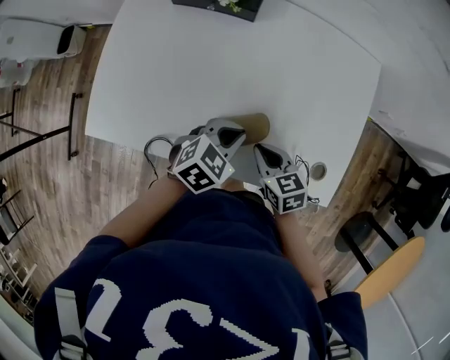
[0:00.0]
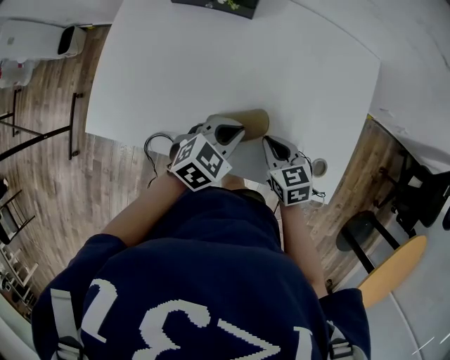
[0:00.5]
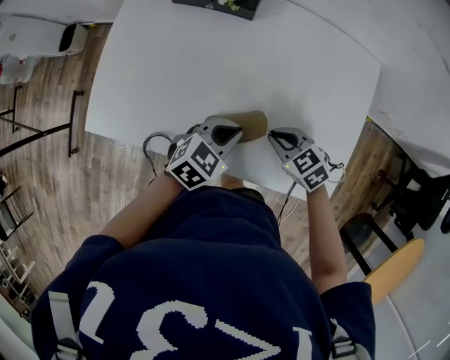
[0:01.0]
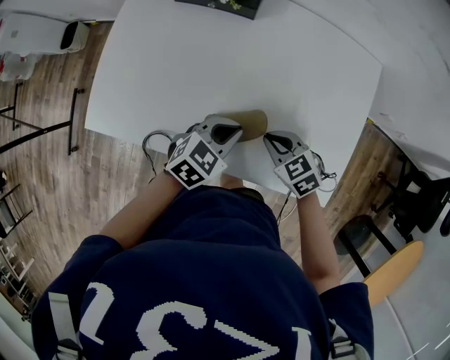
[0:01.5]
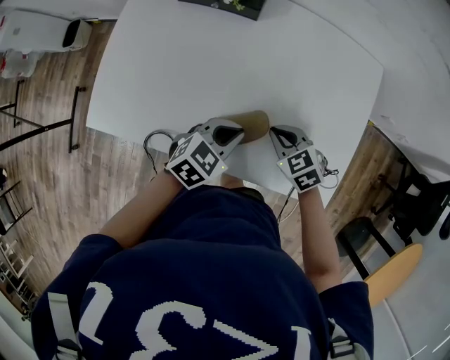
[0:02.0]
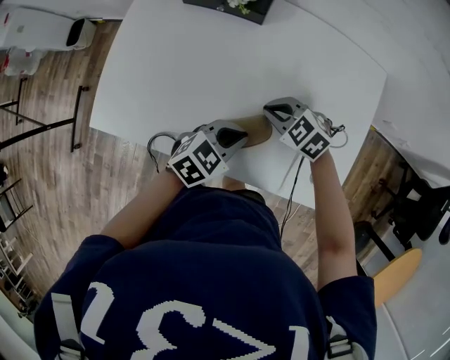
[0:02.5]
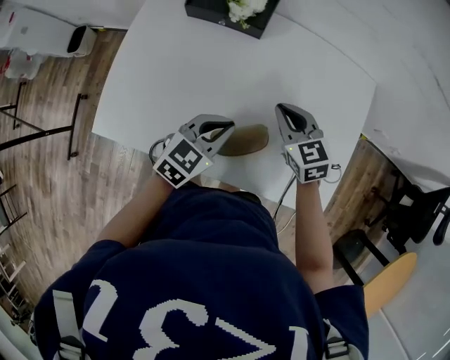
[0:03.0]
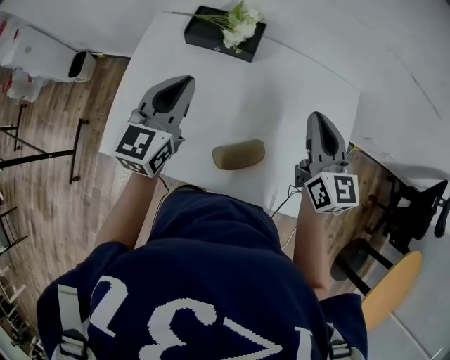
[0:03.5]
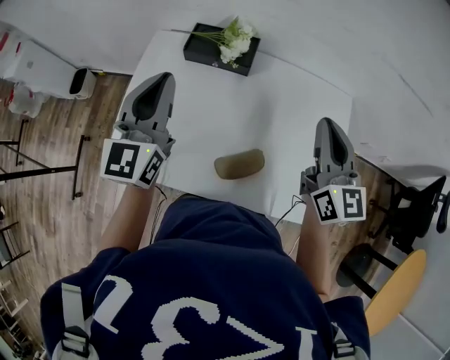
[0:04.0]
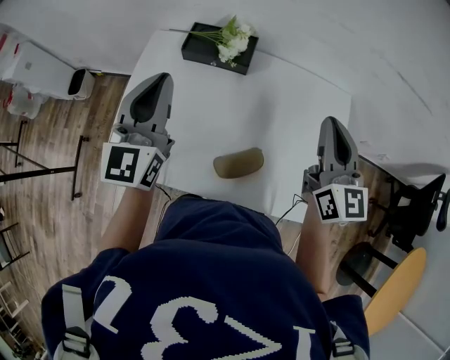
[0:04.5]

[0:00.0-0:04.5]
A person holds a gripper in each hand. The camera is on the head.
0:00.0 to 0:02.0: The right gripper shifts by some 5 cm, and swivels approximately 30 degrees.
0:02.0 to 0:04.5: The two grippers go some 30 cm upward. The right gripper tilts its fingers approximately 50 degrees upward, while the left gripper points its fingers some 50 degrees further upward.

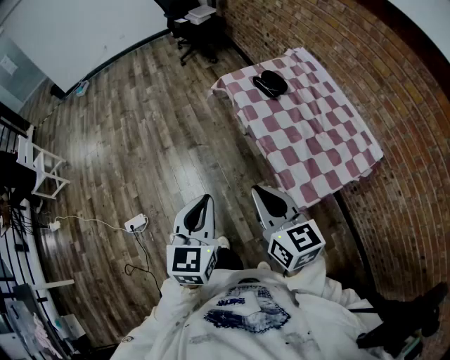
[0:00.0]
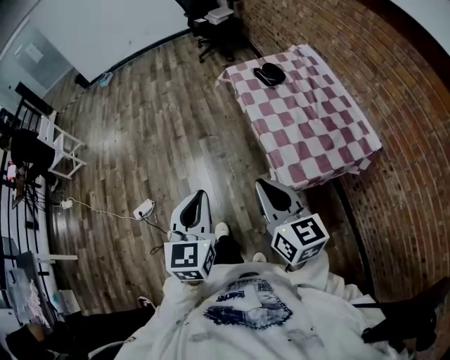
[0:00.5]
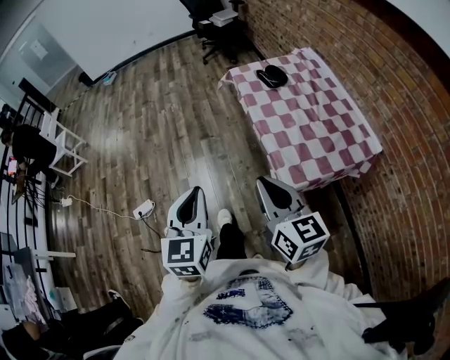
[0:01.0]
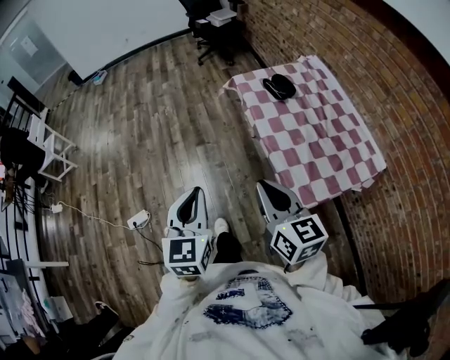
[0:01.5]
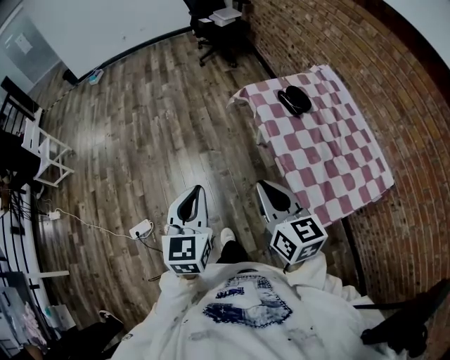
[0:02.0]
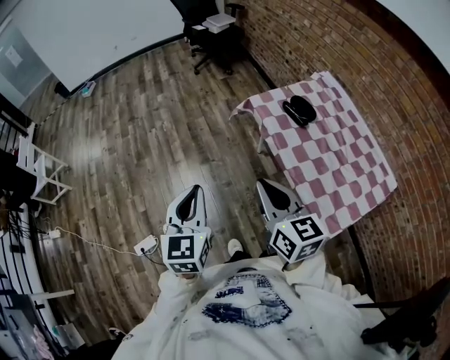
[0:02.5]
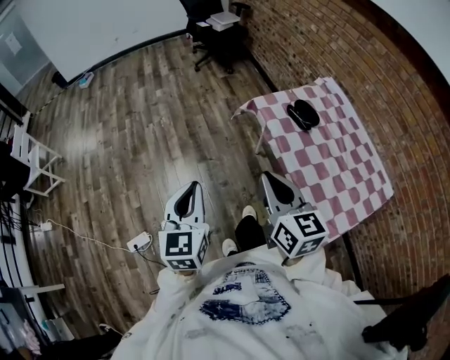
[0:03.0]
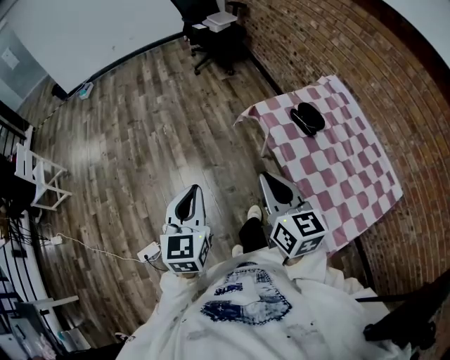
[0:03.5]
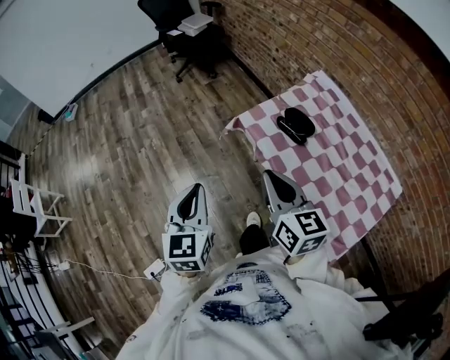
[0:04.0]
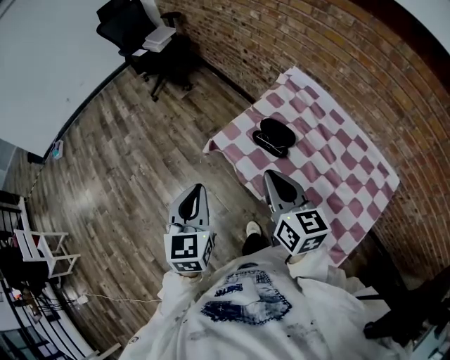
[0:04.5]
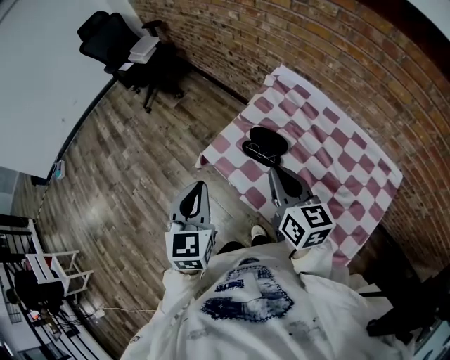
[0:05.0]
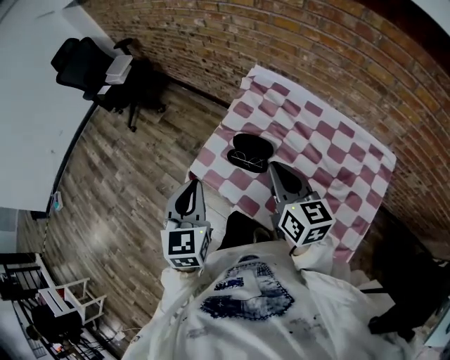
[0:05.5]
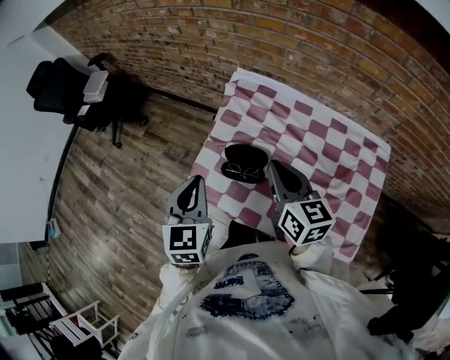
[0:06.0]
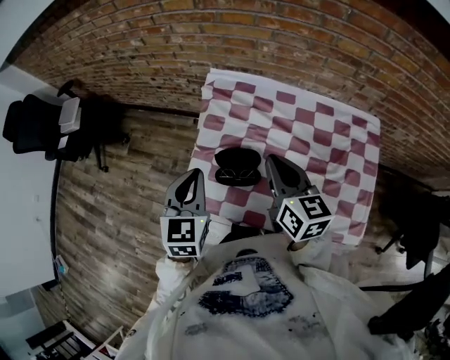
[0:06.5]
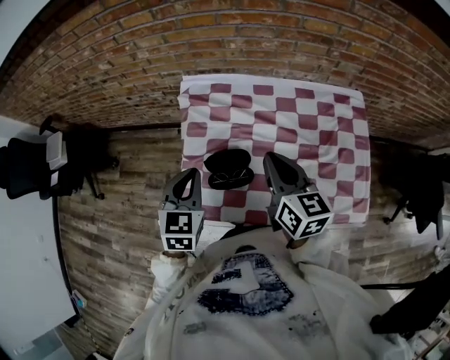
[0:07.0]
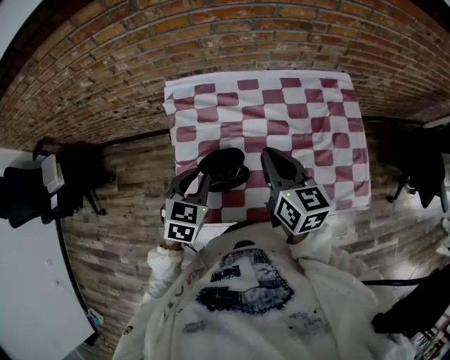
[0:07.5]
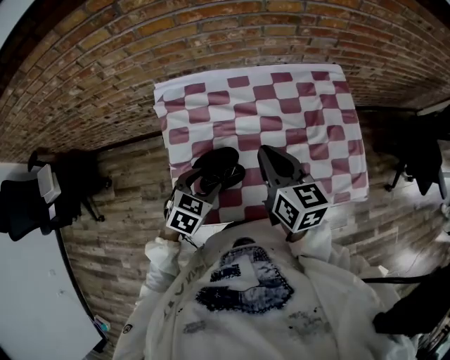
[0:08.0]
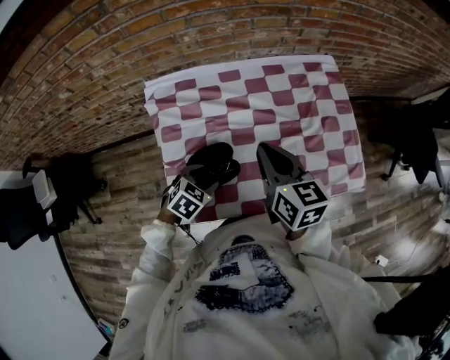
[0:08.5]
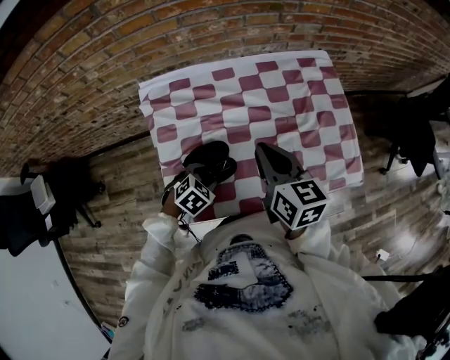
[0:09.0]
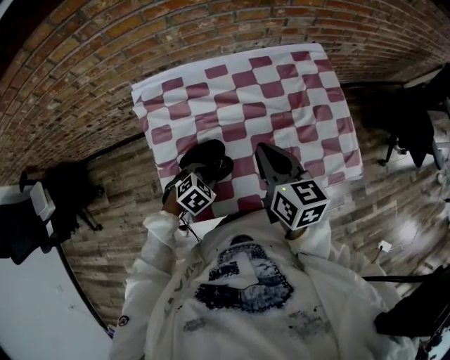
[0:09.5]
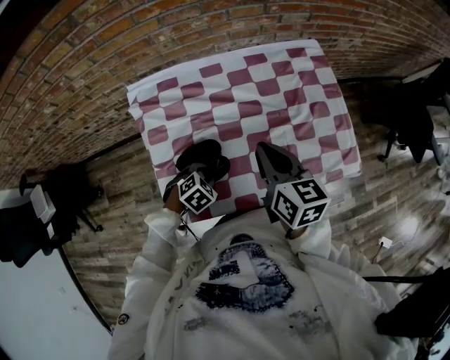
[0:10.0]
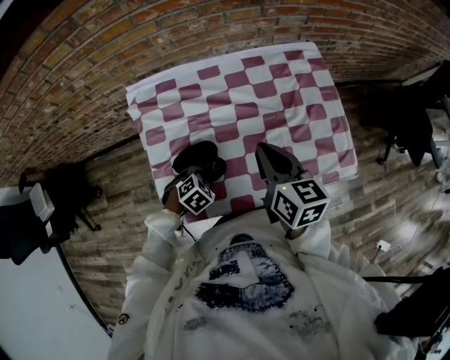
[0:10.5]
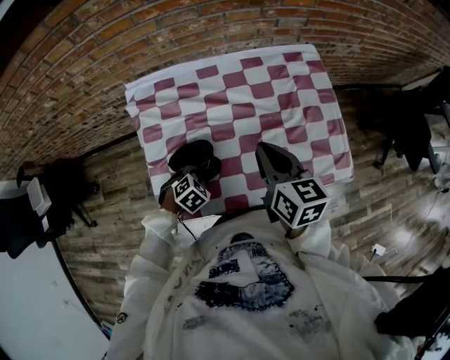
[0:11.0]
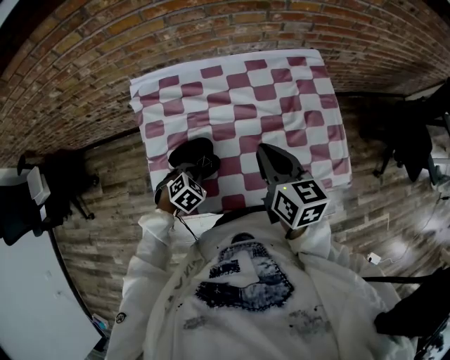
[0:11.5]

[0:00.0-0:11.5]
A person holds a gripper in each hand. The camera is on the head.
0:00.0 to 0:02.0: The left gripper moves forward and to the left, some 10 cm. Meanwhile the right gripper moves forward, approximately 10 cm.
0:02.0 to 0:04.0: Both grippers travel together forward, approximately 25 cm.
0:04.0 to 0:06.0: The right gripper ends up approximately 35 cm from where it was, and swivels some 30 degrees, while the left gripper moves some 40 cm, and turns by some 40 degrees.
0:06.0 to 0:07.5: The left gripper goes some 10 cm downward, and changes its angle by some 50 degrees; the right gripper shifts by roughly 5 cm, and turns by roughly 30 degrees.
0:07.5 to 0:09.5: The left gripper shifts approximately 15 cm downward, turns by some 40 degrees, and opens up.
0:09.5 to 0:11.5: The left gripper closes.

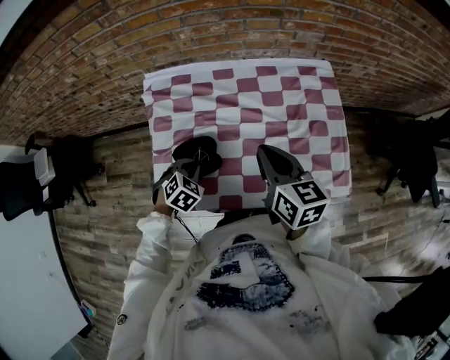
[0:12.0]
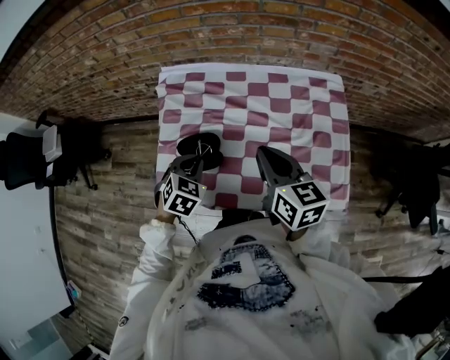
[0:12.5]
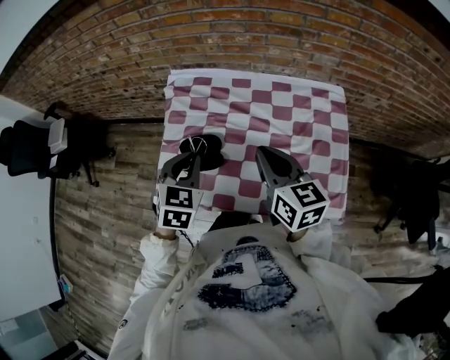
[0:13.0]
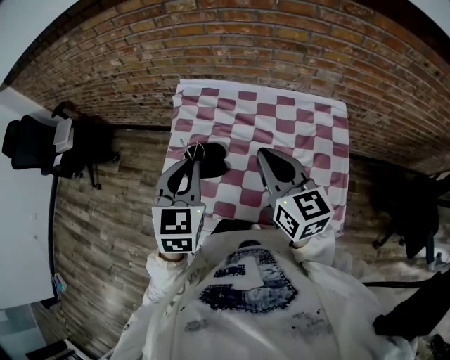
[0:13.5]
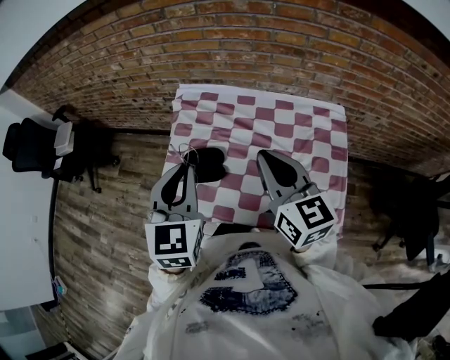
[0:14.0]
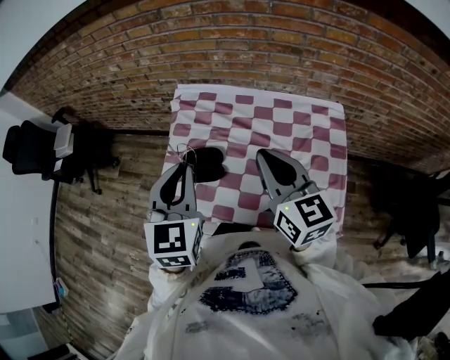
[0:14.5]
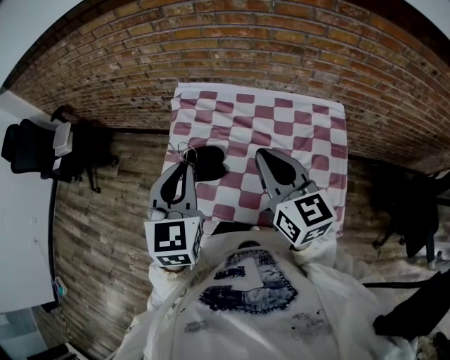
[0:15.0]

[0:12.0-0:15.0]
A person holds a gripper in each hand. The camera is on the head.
0:12.0 to 0:13.5: The right gripper is displaced upward by about 10 cm, and swivels roughly 20 degrees; the left gripper travels upward by approximately 25 cm, and tips its fingers upward by about 40 degrees.
0:13.5 to 0:15.0: There are only small adjustments of the grippers.

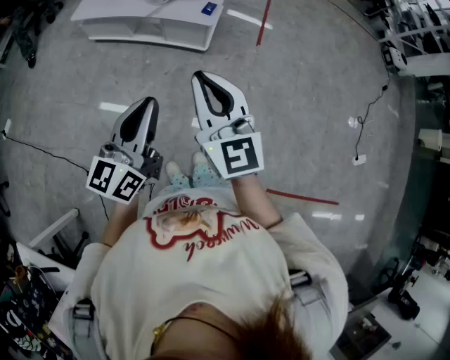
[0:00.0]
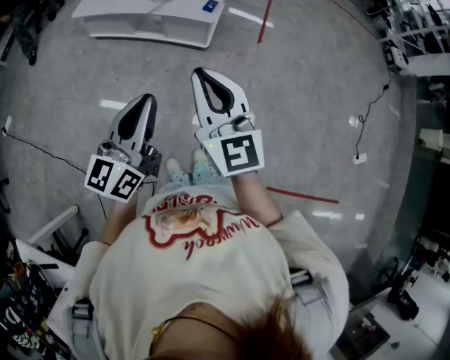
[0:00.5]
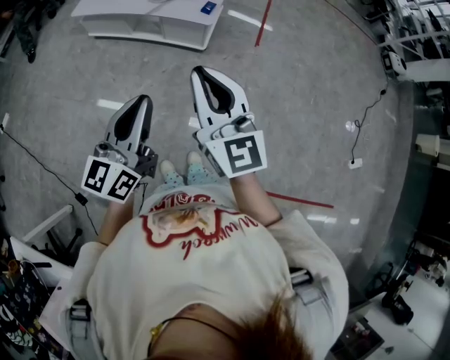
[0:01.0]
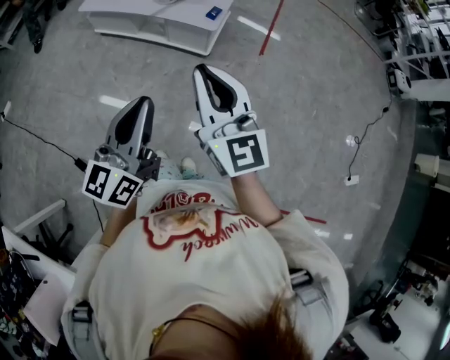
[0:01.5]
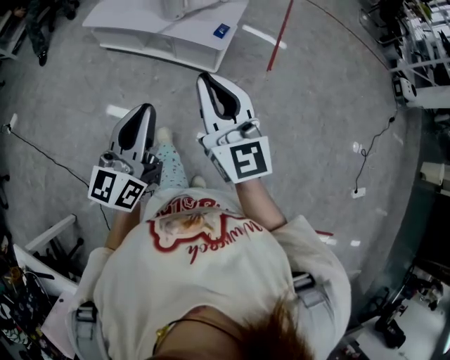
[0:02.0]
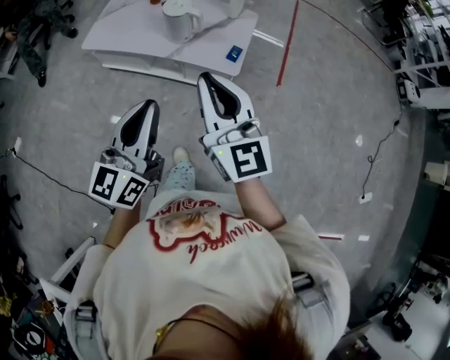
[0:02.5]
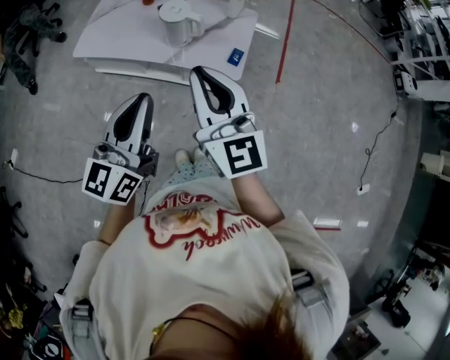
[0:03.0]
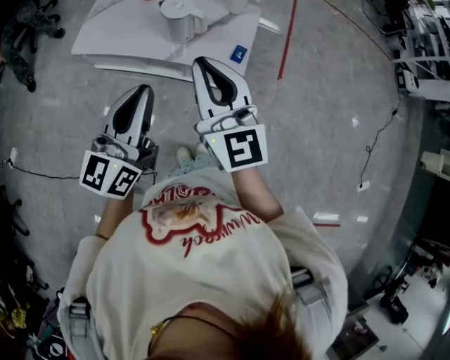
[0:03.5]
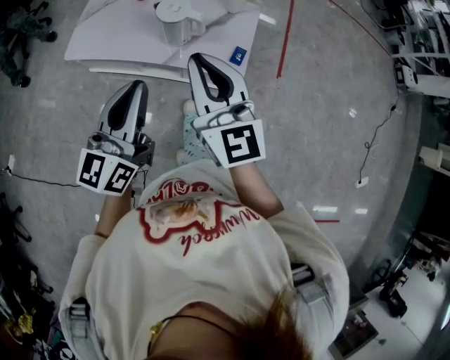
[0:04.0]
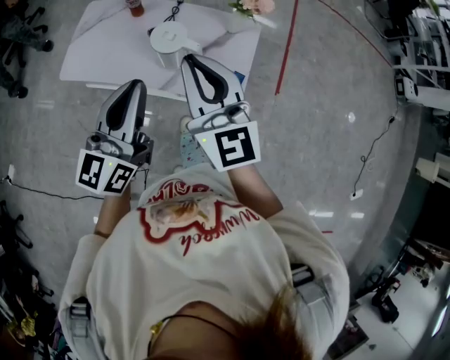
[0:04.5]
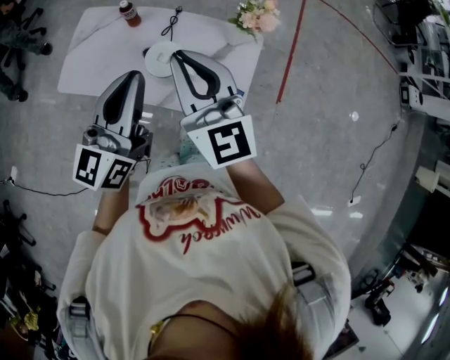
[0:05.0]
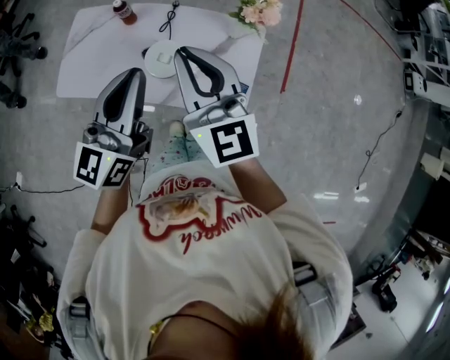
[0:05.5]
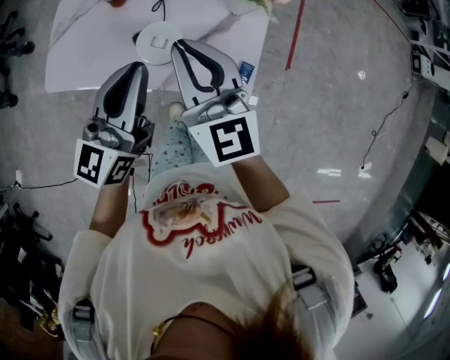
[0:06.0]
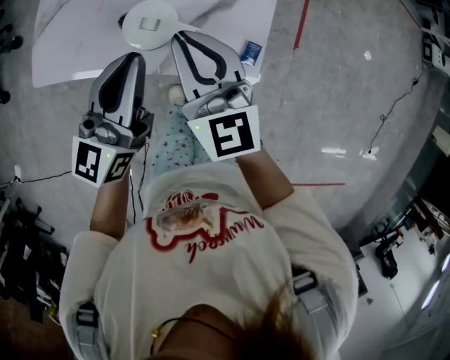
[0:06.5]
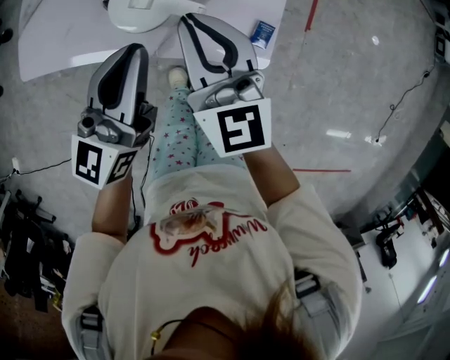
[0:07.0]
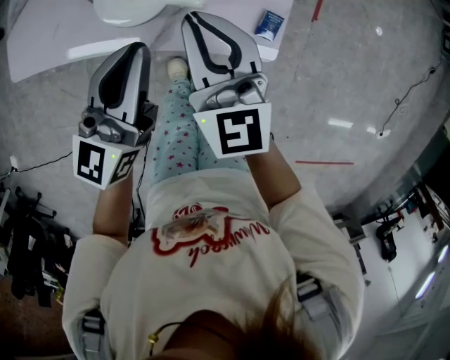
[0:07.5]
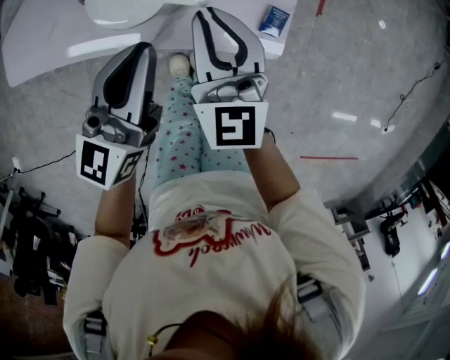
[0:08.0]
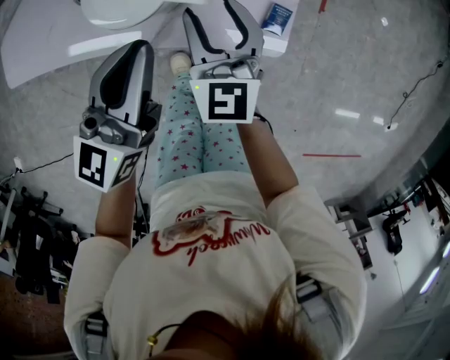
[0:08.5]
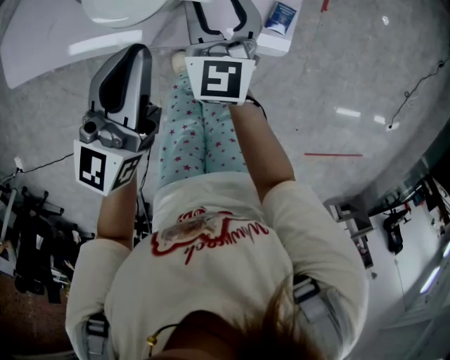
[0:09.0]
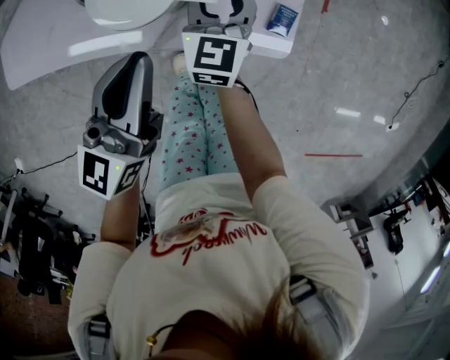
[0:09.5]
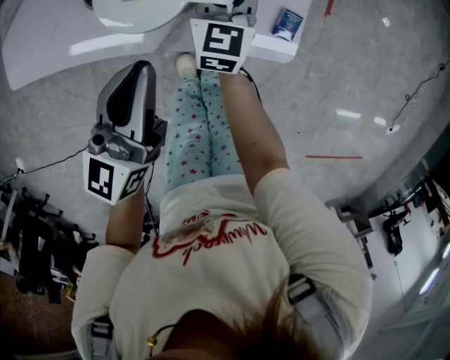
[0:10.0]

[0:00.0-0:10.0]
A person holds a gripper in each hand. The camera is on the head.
0:00.0 to 0:02.0: Both grippers travel together forward, some 10 cm.
0:02.0 to 0:04.0: The pair of grippers is taken forward and to the left, some 40 cm.
0:04.0 to 0:06.0: The grippers both shift forward by roughly 35 cm.
0:06.0 to 0:08.0: The two grippers go approximately 25 cm downward. The right gripper rotates roughly 20 degrees.
0:08.0 to 0:10.0: The right gripper heads downward and forward, covering some 15 cm, and opens, then closes again.
